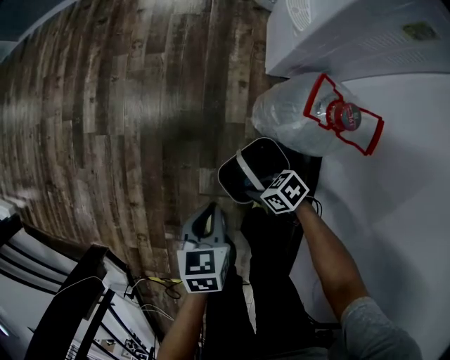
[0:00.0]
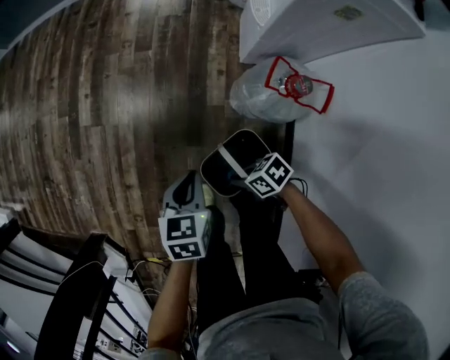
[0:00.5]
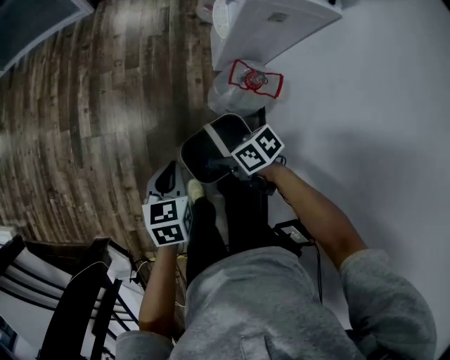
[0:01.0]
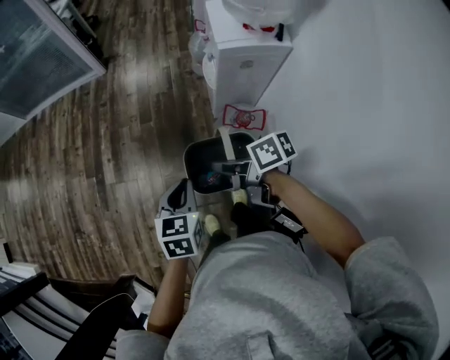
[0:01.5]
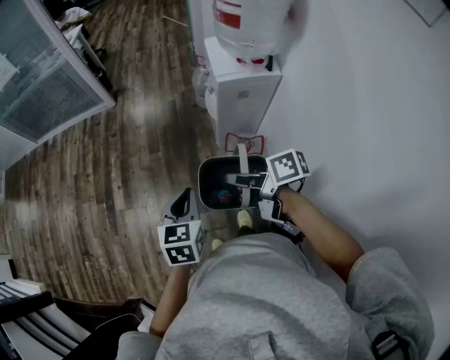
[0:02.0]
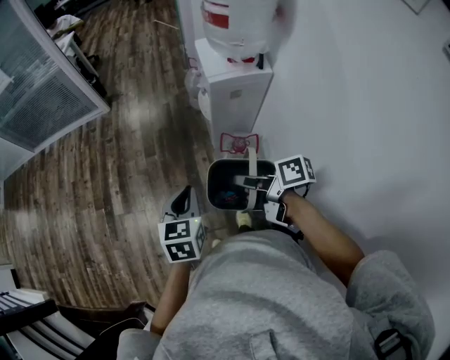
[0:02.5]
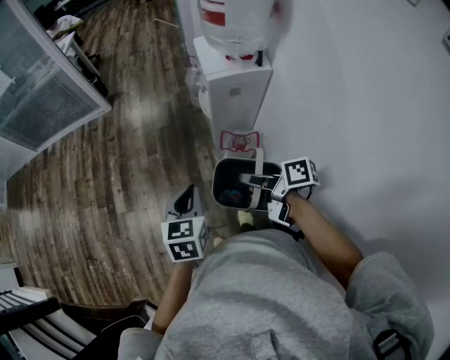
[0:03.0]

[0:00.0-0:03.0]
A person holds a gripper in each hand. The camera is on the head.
0:00.0 to 0:01.5: The grippers both shift upward by about 50 cm. The left gripper turns by roughly 20 degrees, while the right gripper rotates about 40 degrees.
0:01.5 to 0:03.0: The left gripper moves upward, approximately 5 cm. The right gripper shifts roughly 10 cm to the right and backward, and turns by approximately 20 degrees.

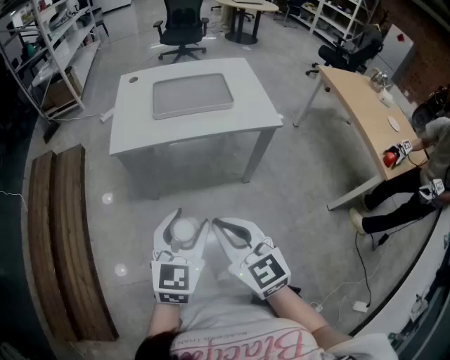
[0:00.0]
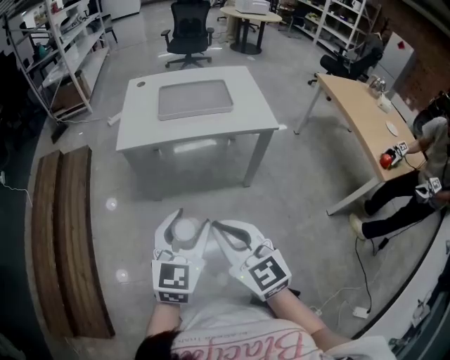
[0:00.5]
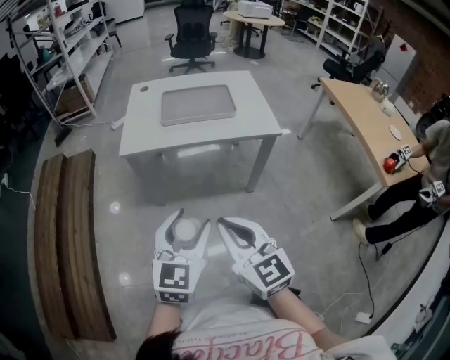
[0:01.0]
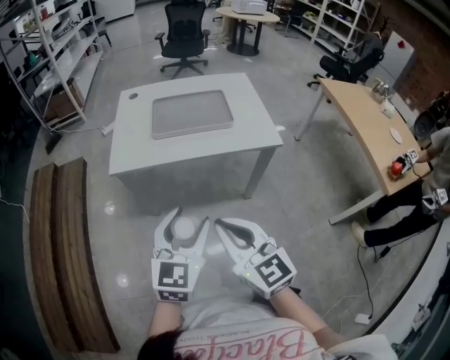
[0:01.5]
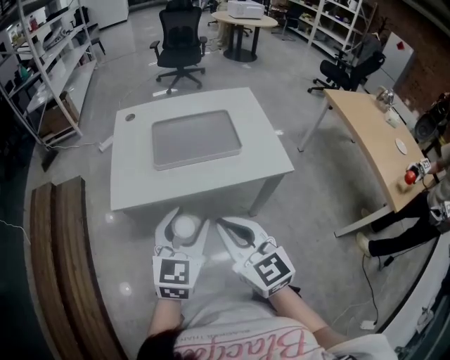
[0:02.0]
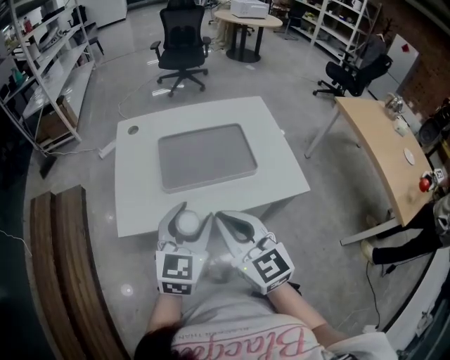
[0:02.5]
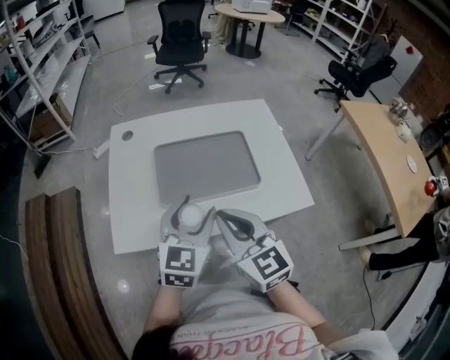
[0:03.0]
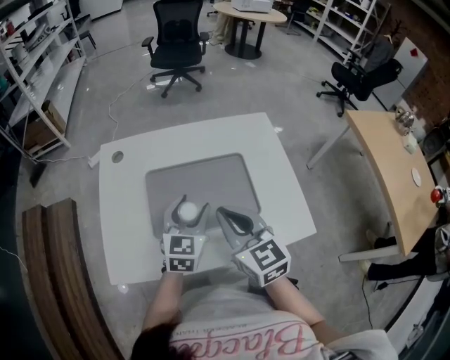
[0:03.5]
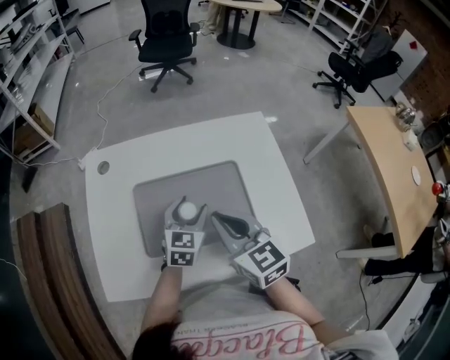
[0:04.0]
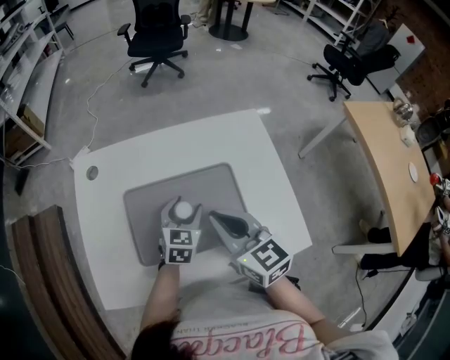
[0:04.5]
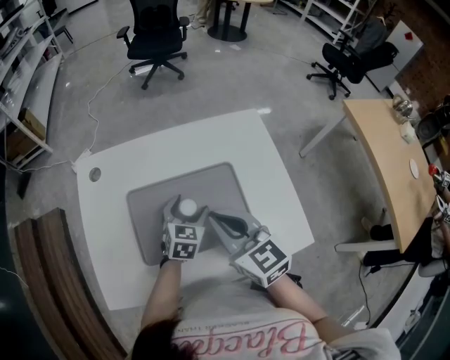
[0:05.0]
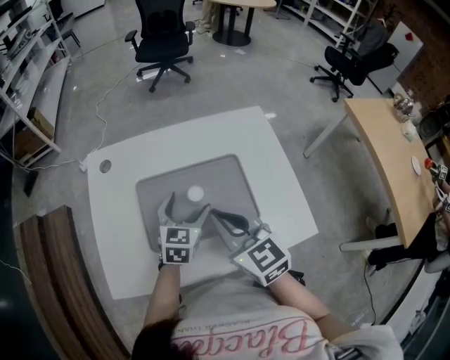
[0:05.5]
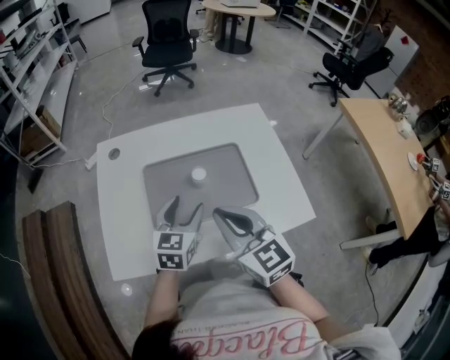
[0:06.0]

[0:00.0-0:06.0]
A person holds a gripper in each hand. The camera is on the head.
0:00.0 to 0:02.0: The two grippers go some 15 cm forward.
0:02.0 to 0:04.0: The right gripper moves forward, roughly 30 cm. Meanwhile the left gripper is displaced forward and downward by approximately 35 cm.
0:04.0 to 0:06.0: The grippers both shift backward by about 5 cm.

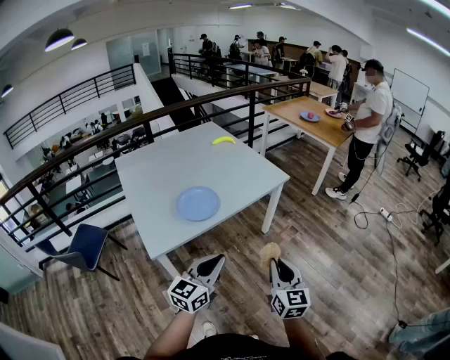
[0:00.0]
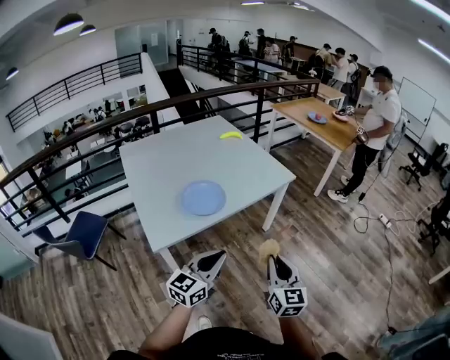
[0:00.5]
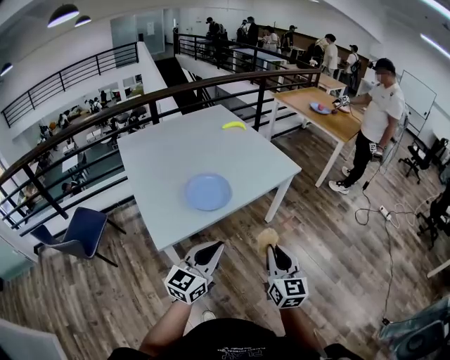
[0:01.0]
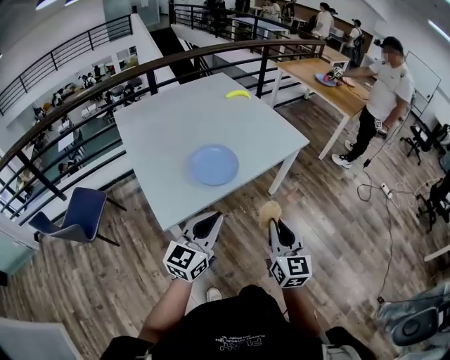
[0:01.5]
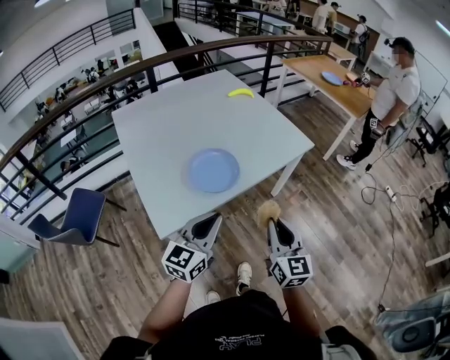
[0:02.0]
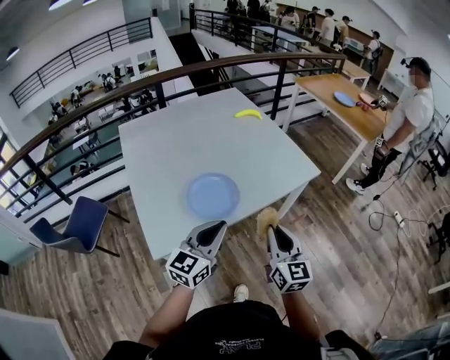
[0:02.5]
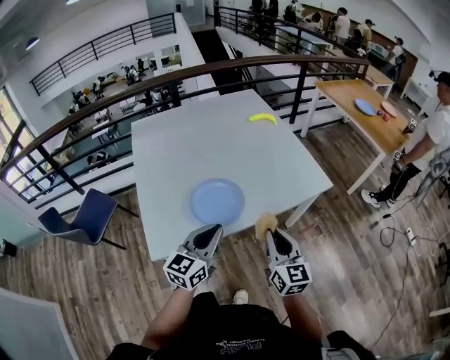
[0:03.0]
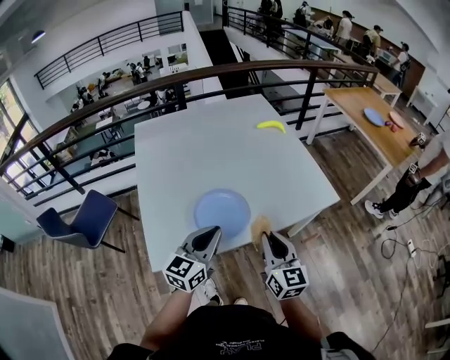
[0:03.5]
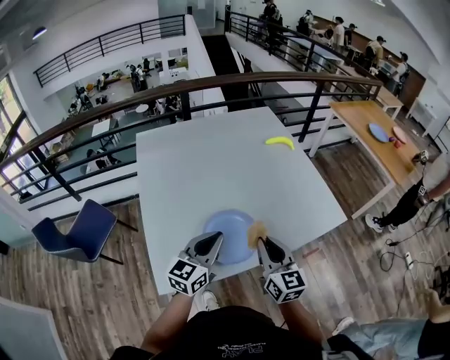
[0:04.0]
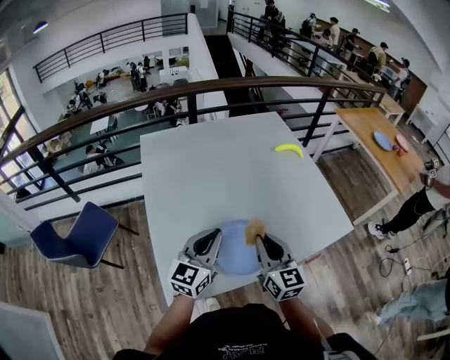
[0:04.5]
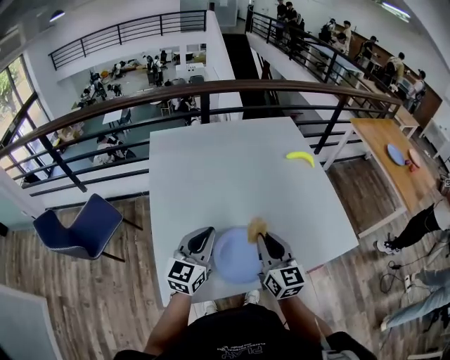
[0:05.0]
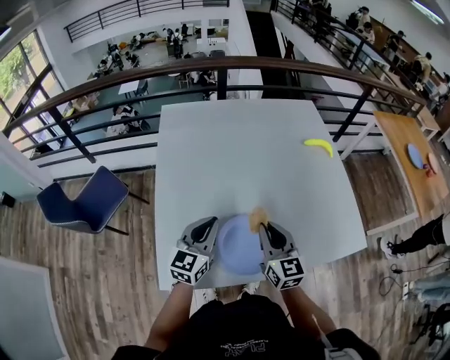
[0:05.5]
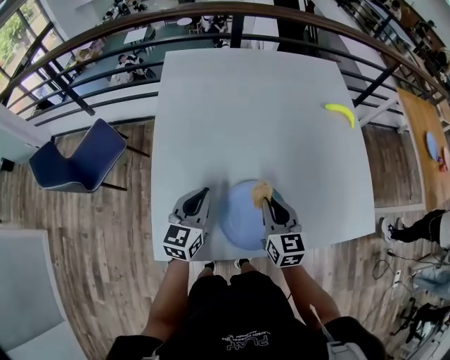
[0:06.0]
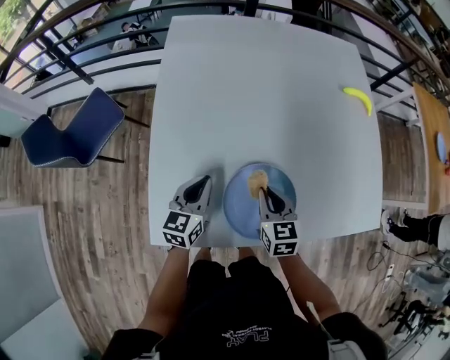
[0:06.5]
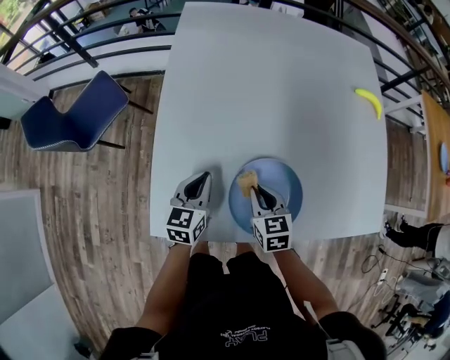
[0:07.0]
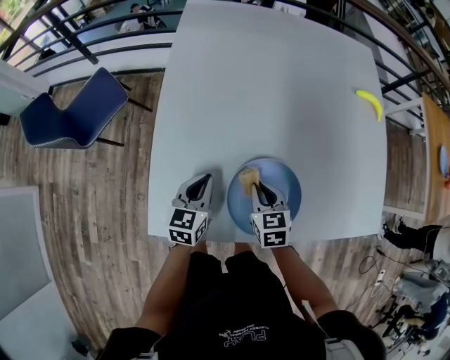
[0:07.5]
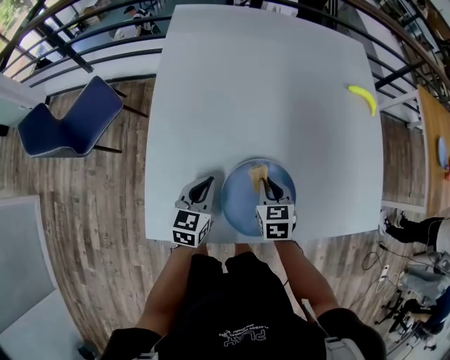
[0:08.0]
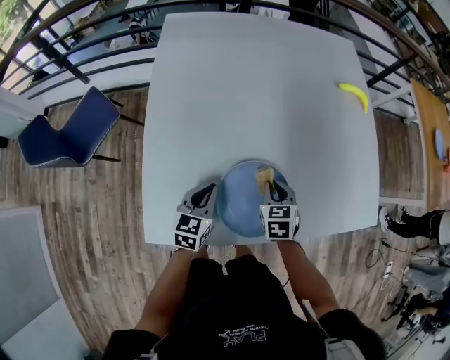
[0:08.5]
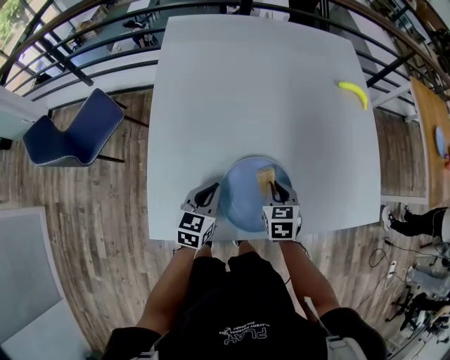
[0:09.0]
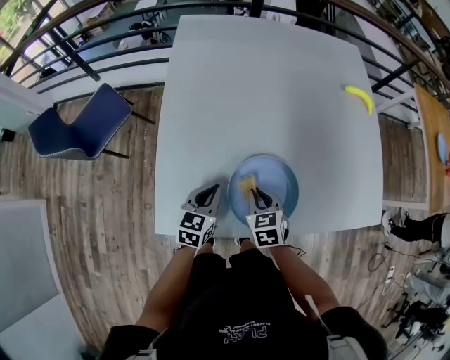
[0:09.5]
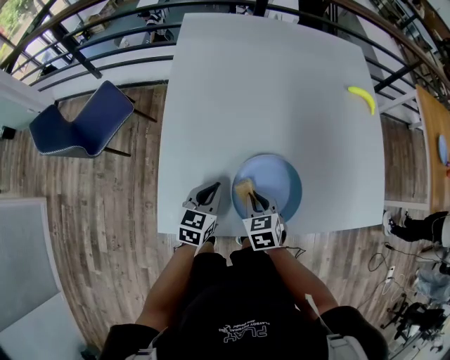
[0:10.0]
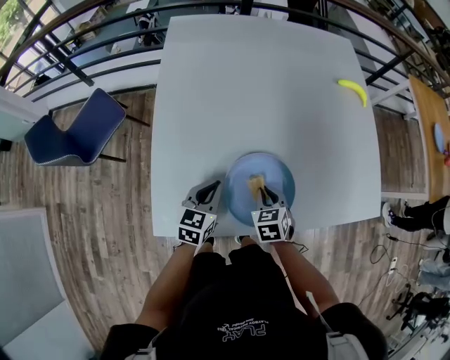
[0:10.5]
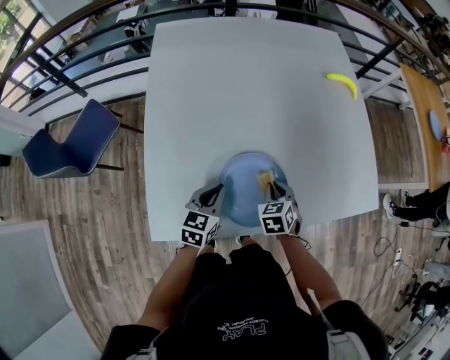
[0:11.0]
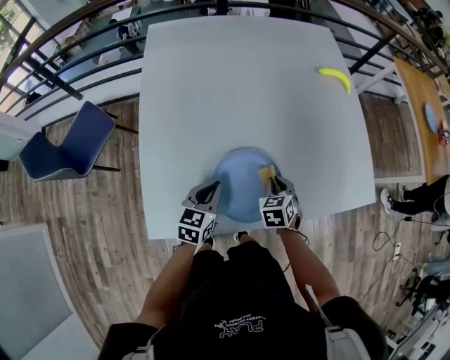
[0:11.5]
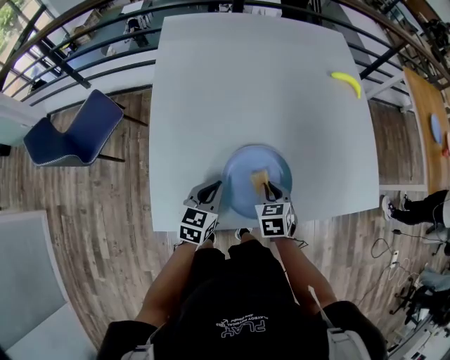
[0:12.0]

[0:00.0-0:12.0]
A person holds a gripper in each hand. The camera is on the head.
0:00.0 to 0:02.0: The two grippers go roughly 20 cm to the left and forward.
0:02.0 to 0:04.0: The grippers both shift forward by roughly 25 cm. The right gripper rotates about 20 degrees.
0:04.0 to 0:06.0: The right gripper shifts roughly 20 cm forward, downward and to the left, and turns by approximately 20 degrees; the left gripper travels to the left, forward and downward by some 20 cm, and turns by about 30 degrees.
0:06.0 to 0:08.0: Both grippers move downward, approximately 10 cm. The right gripper swivels roughly 30 degrees.
0:08.0 to 0:10.0: The right gripper shifts roughly 10 cm backward and to the left.
0:10.0 to 0:12.0: The right gripper is displaced to the right by some 10 cm.

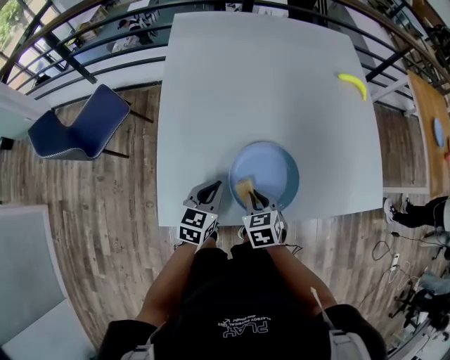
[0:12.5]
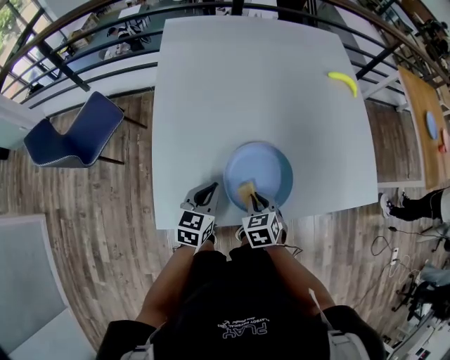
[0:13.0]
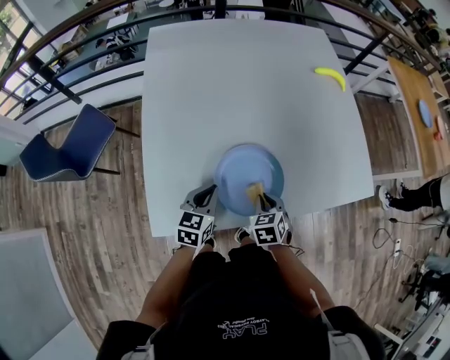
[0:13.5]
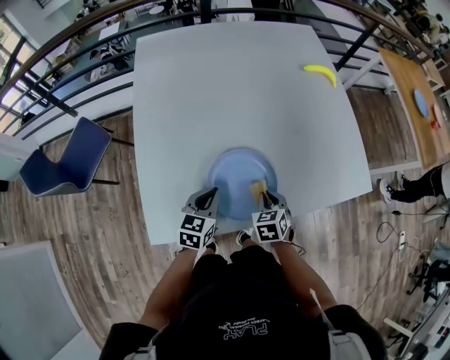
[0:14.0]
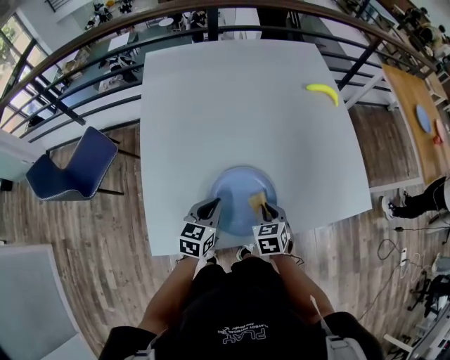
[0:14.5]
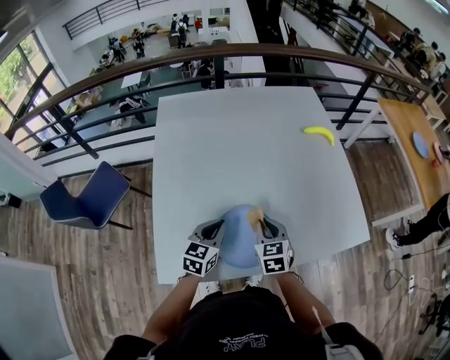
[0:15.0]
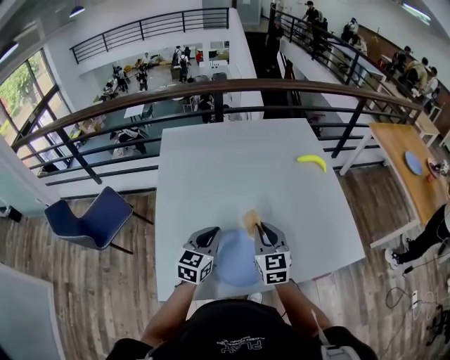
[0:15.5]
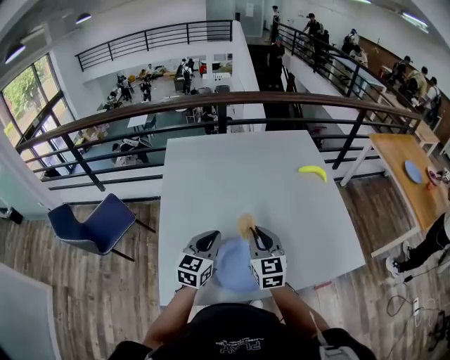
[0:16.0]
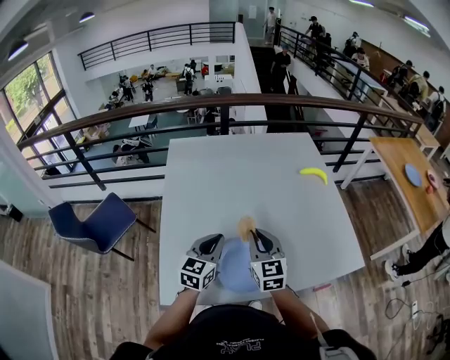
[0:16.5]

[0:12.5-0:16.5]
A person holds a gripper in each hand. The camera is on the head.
0:12.5 to 0:14.5: The left gripper goes roughly 5 cm to the right. The right gripper shifts about 10 cm to the right and forward.
0:14.5 to 0:16.5: The grippers both shift upward by approximately 20 cm. The right gripper tilts its fingers roughly 40 degrees upward.

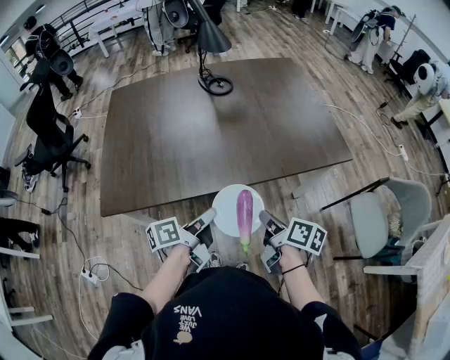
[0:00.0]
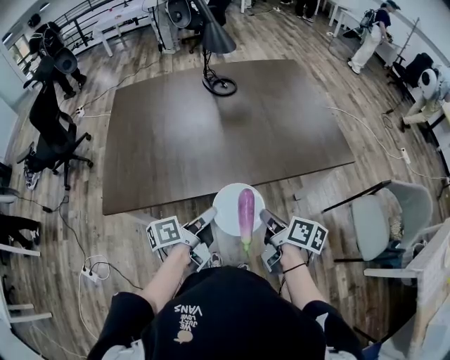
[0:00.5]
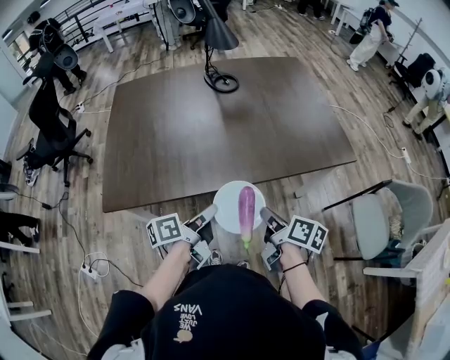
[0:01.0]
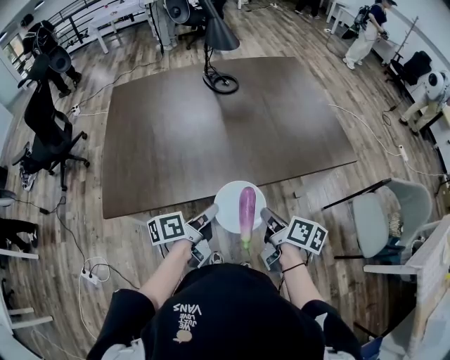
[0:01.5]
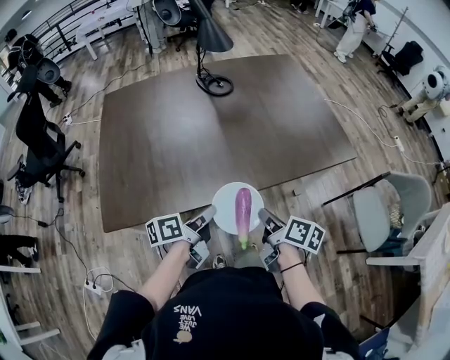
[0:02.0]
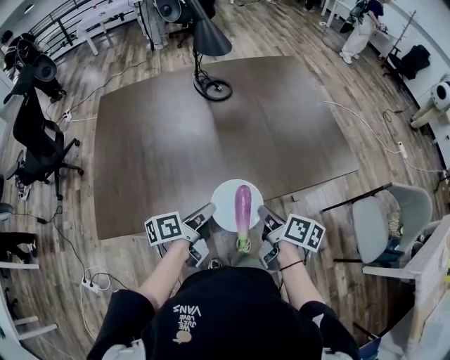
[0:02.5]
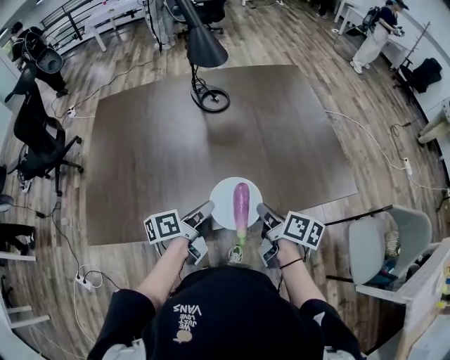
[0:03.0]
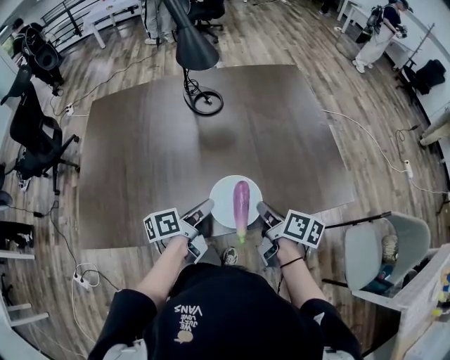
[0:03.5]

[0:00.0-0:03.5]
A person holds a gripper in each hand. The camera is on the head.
0:00.0 to 0:02.0: The right gripper ends up about 5 cm from where it was, while the left gripper shifts by some 5 cm.
0:02.0 to 0:03.5: Both grippers travel together forward and to the right, some 20 cm.
